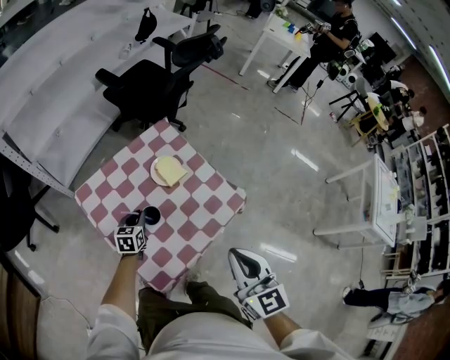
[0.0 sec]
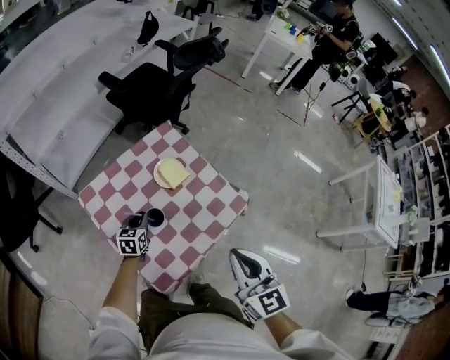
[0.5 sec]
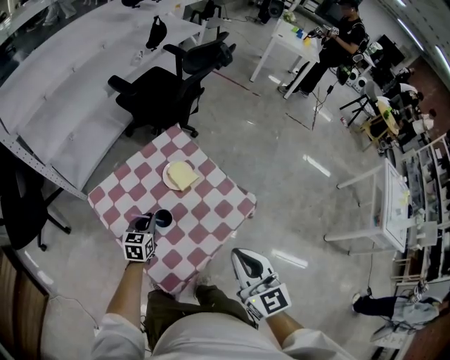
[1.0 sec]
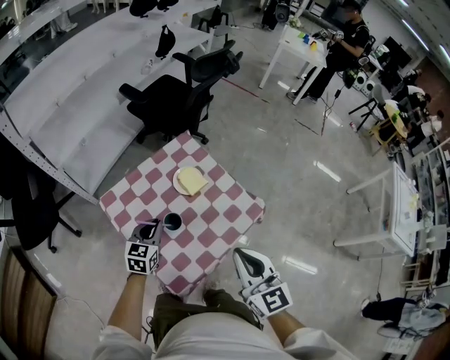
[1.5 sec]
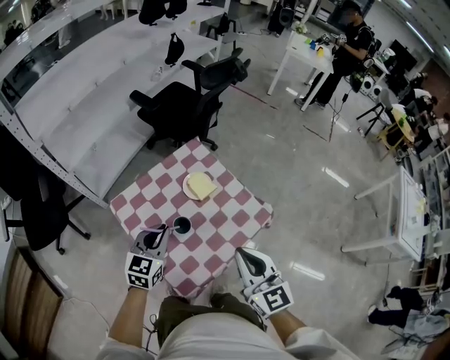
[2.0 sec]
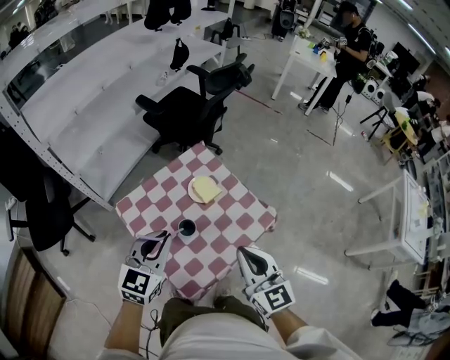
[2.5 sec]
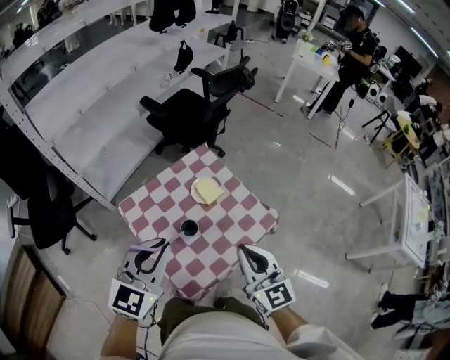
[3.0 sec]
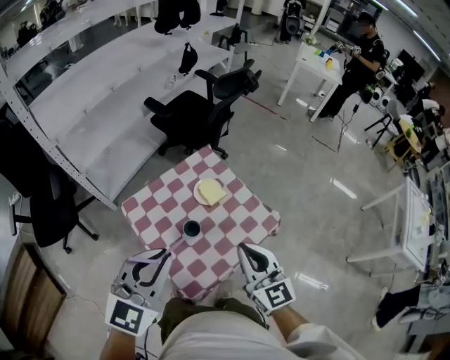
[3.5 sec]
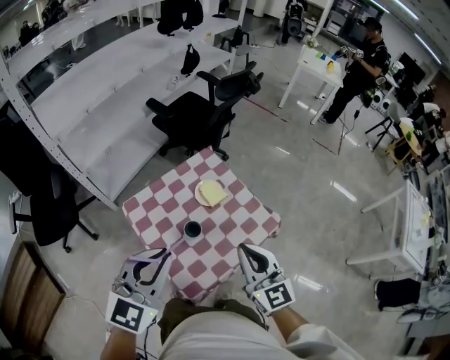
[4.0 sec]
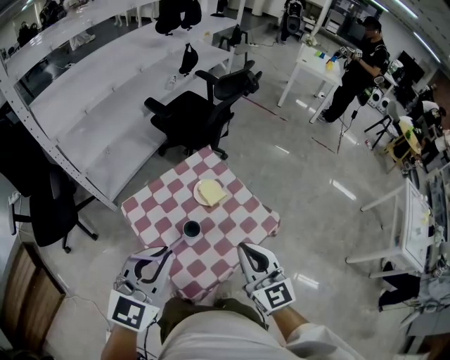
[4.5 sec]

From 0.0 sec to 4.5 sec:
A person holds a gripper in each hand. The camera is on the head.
From 0.0 sec to 2.0 sec: The left gripper moves upward, about 25 cm, and turns by approximately 20 degrees.
From 2.0 sec to 4.5 sec: The left gripper shifts approximately 20 cm upward and backward.

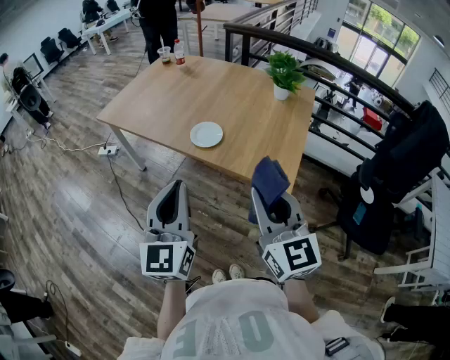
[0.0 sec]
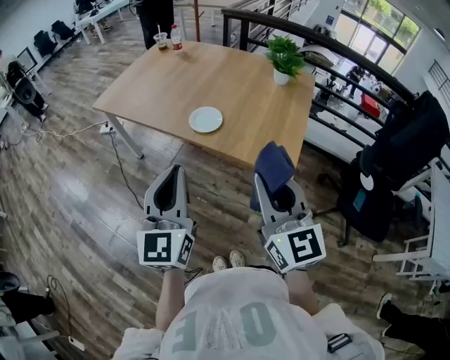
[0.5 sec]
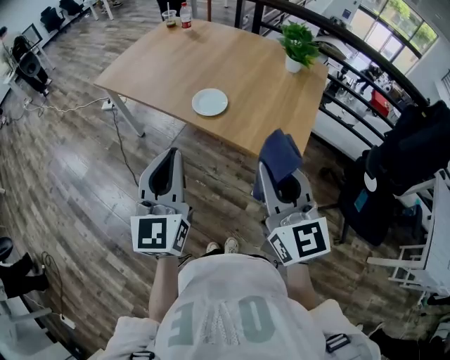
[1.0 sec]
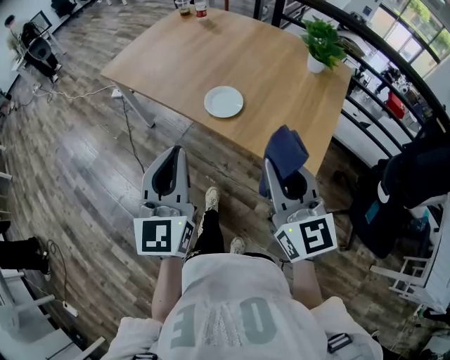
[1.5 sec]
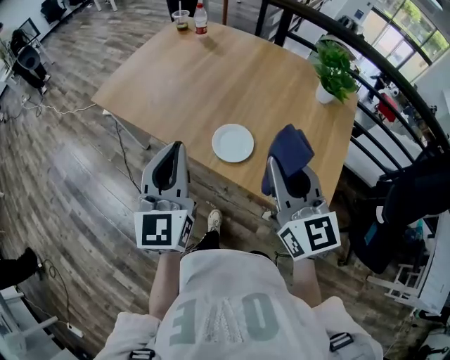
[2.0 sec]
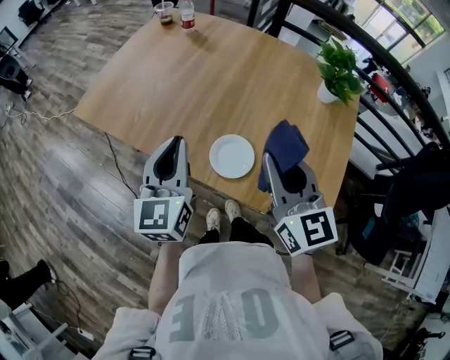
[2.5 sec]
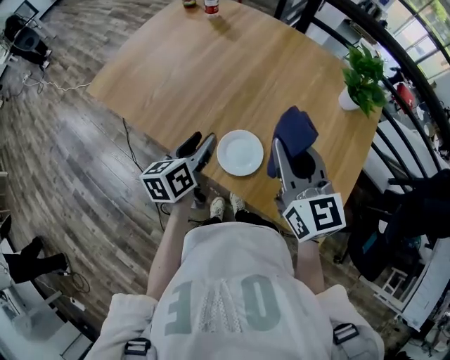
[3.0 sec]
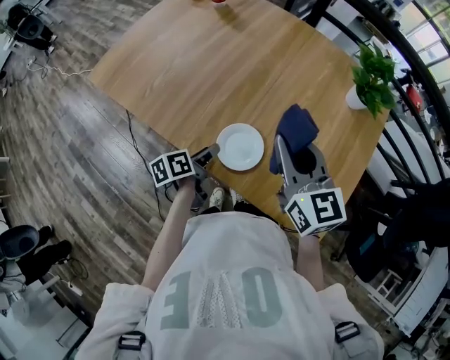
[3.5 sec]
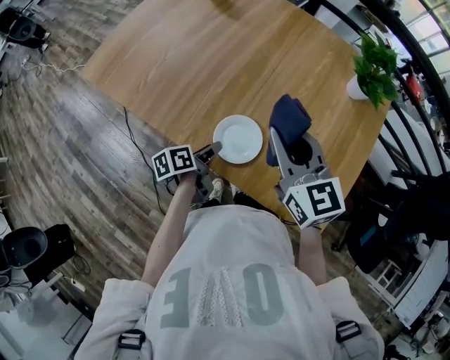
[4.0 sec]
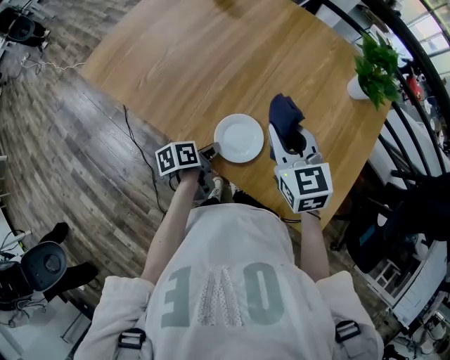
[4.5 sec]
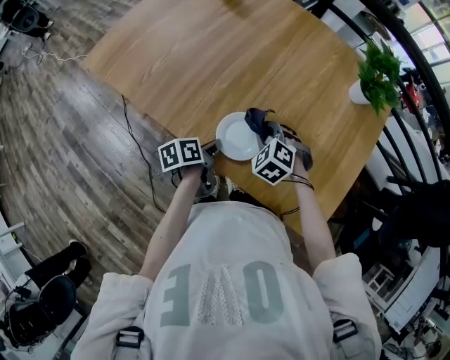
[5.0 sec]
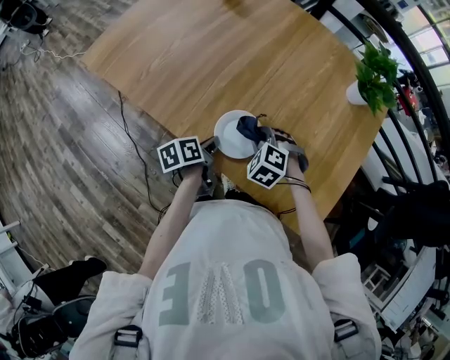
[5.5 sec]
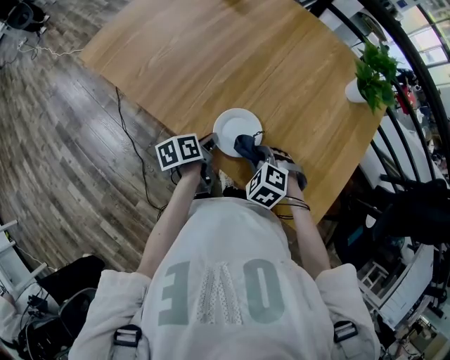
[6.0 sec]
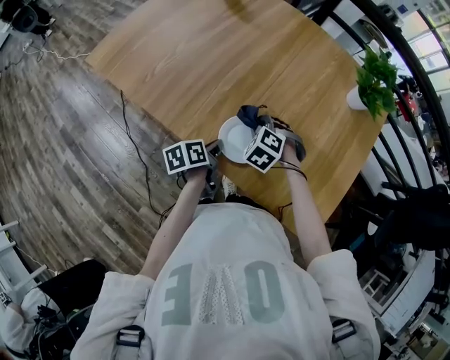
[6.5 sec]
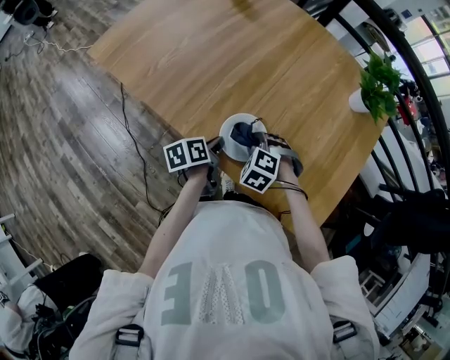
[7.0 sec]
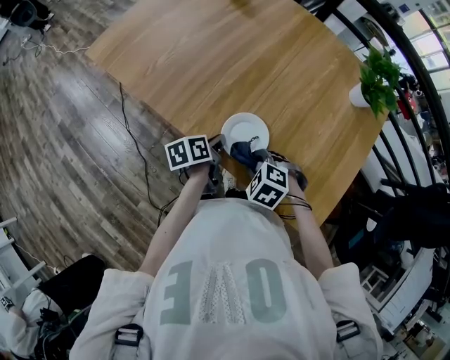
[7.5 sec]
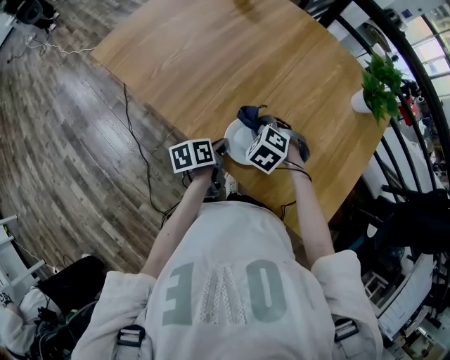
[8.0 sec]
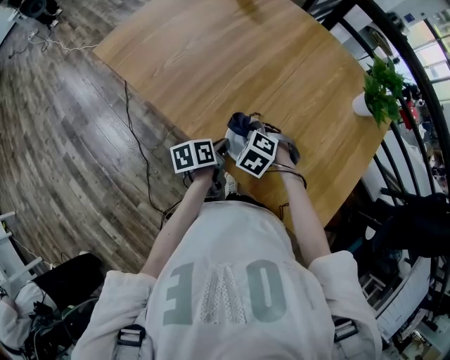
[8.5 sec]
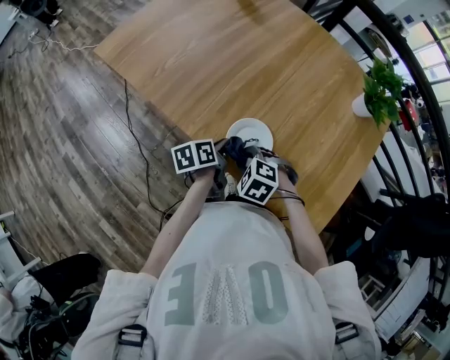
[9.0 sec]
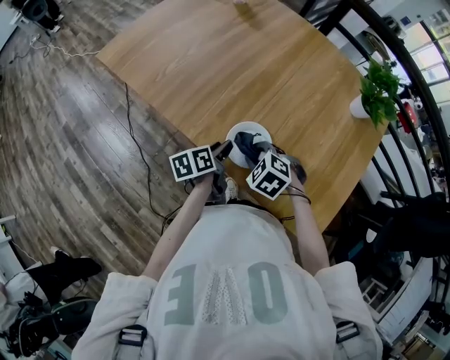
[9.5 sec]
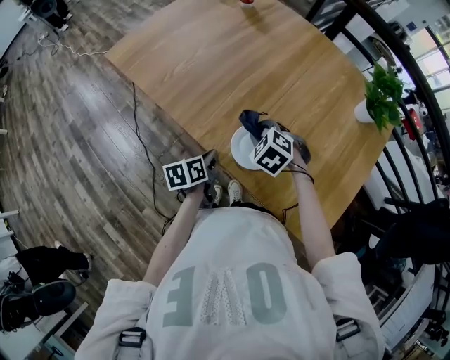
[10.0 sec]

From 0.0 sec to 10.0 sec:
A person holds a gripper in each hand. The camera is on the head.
From 0.0 sec to 2.0 sec: Both grippers travel together forward, about 25 cm.
From 2.0 sec to 4.0 sec: The right gripper shifts roughly 20 cm forward and downward; the left gripper is displaced downward by approximately 30 cm, points its fingers roughly 40 degrees further downward, and opens its fingers.
From 4.0 sec to 6.0 sec: The left gripper closes. Meanwhile the right gripper goes approximately 25 cm downward, and tilts its fingers approximately 50 degrees downward.
From 6.0 sec to 8.0 sec: The right gripper moves forward and backward over some 15 cm, changing direction 2 times.
From 8.0 sec to 10.0 sec: The left gripper is displaced to the left by approximately 5 cm, and opens and closes again; the right gripper travels backward and back again, about 10 cm each way.

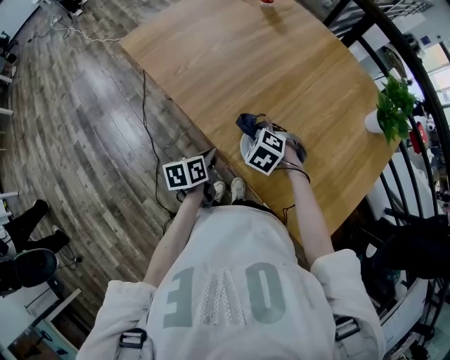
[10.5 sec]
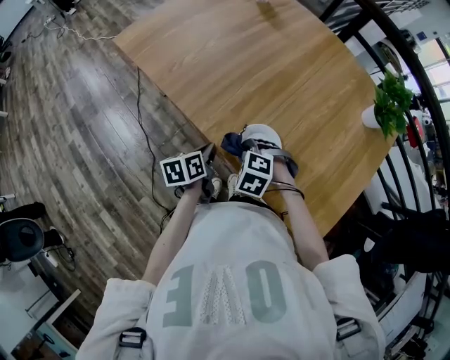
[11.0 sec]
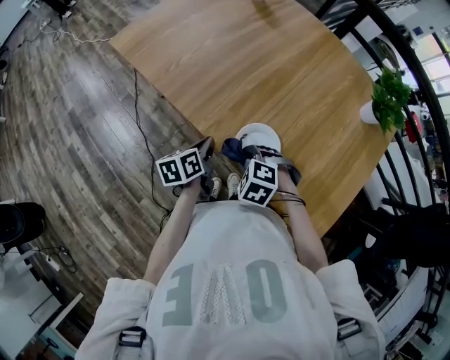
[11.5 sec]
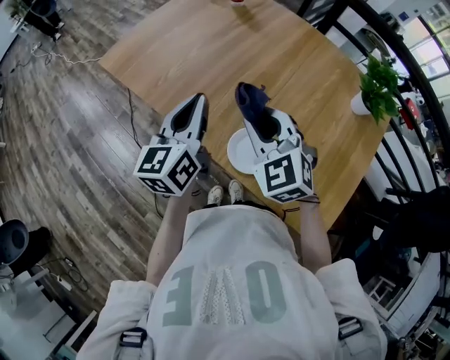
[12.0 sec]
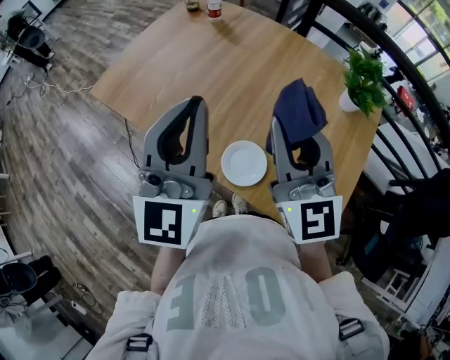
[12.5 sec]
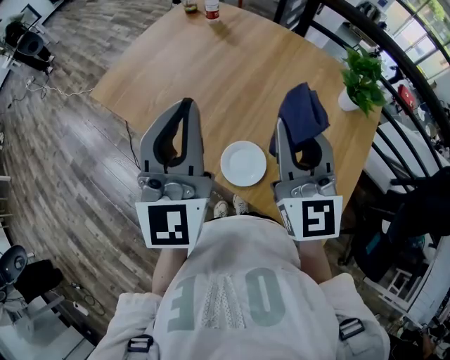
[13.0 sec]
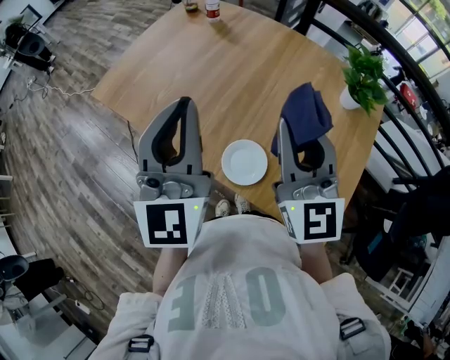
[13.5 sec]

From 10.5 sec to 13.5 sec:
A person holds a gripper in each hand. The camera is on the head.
From 10.5 sec to 12.0 sec: The two grippers go roughly 25 cm upward. The left gripper angles its fingers upward, by some 40 degrees. The right gripper tips its fingers upward by some 40 degrees.
From 12.0 sec to 13.5 sec: The left gripper shifts approximately 15 cm upward, and rotates roughly 40 degrees, while the right gripper heads upward and to the right, covering about 15 cm, and angles its fingers upward, by approximately 30 degrees.

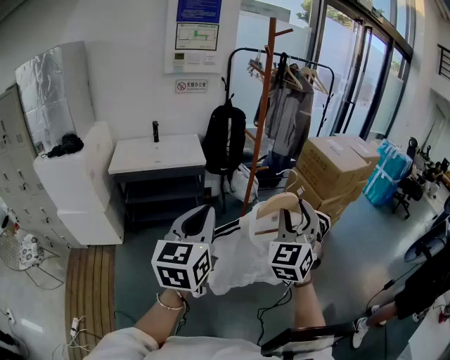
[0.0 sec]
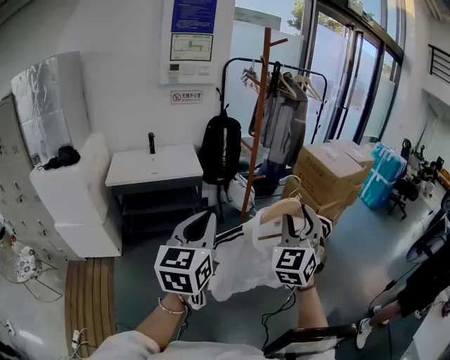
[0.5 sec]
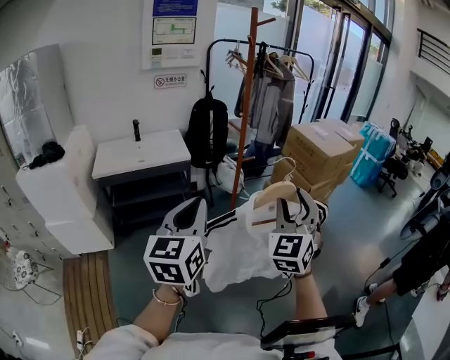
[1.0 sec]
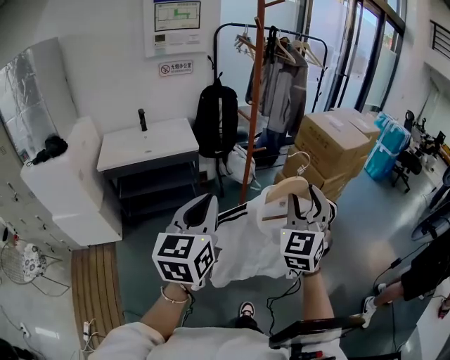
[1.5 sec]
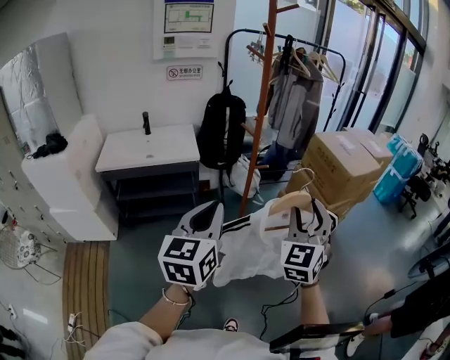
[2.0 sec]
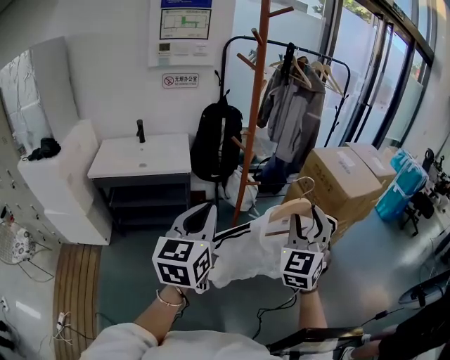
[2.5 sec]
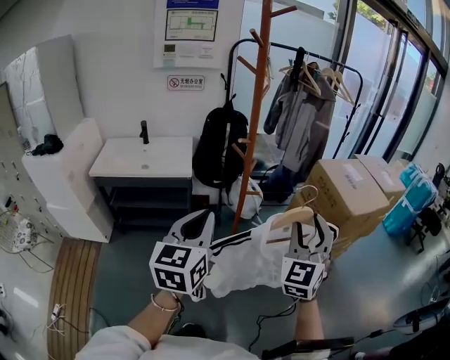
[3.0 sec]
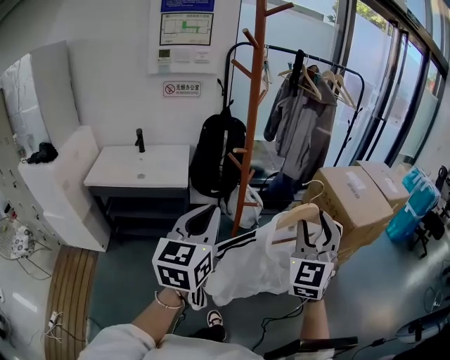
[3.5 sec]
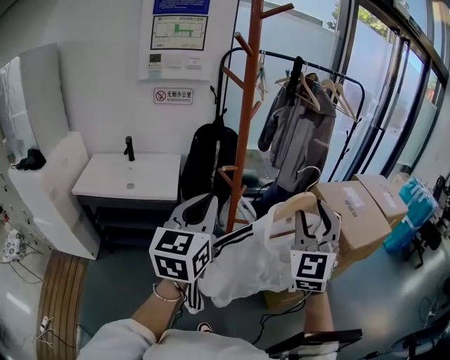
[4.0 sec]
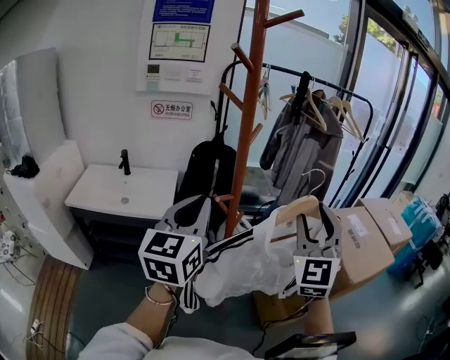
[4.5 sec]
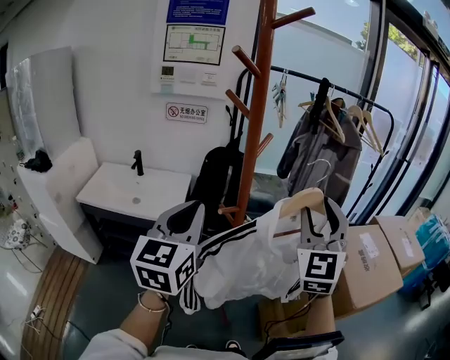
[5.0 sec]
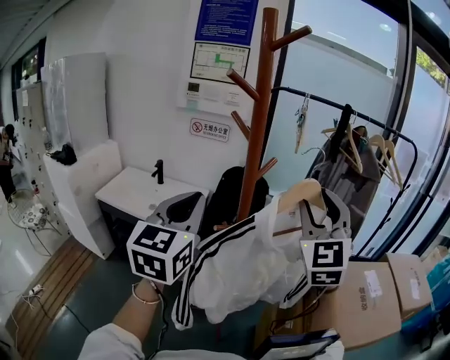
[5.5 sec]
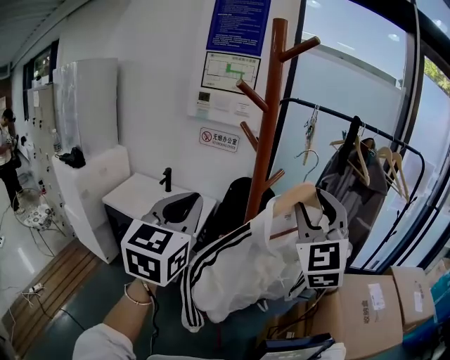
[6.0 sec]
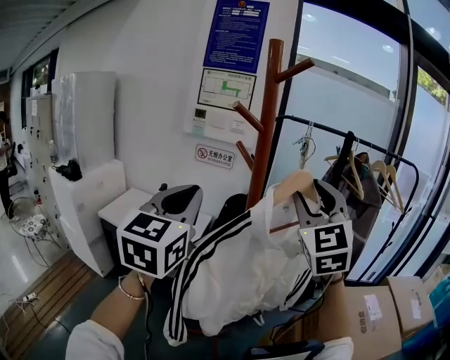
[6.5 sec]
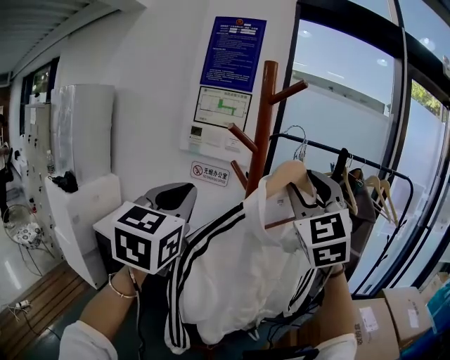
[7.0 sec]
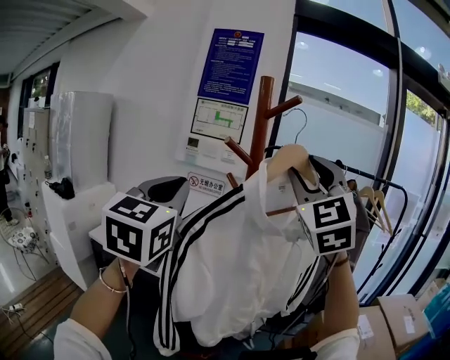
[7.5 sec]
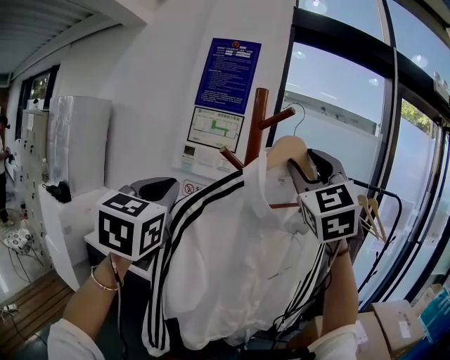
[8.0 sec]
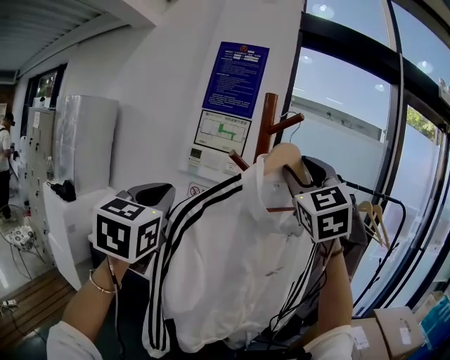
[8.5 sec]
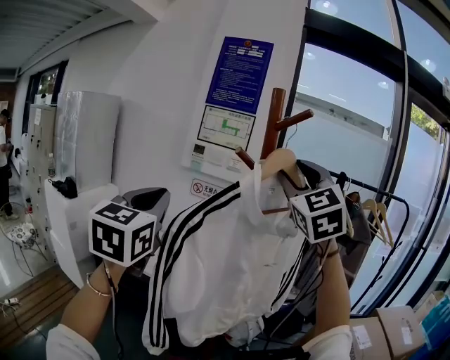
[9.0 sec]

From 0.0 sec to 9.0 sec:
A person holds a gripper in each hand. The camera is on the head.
From 0.0 sec to 2.0 sec: Both grippers travel together forward, approximately 15 cm.
From 2.0 sec to 4.5 sec: Both grippers travel together forward, approximately 35 cm. The right gripper swivels some 20 degrees.
From 4.5 sec to 7.0 sec: The left gripper goes some 15 cm upward, and swivels some 30 degrees. The right gripper goes some 25 cm upward and forward, and swivels roughly 30 degrees.
From 7.0 sec to 9.0 sec: The left gripper is displaced to the left by about 5 cm. The right gripper shifts some 5 cm upward.
